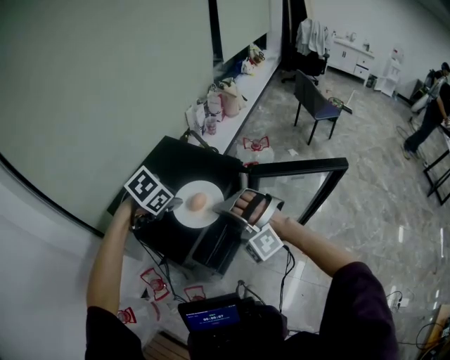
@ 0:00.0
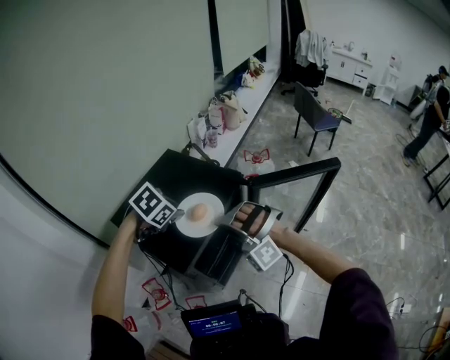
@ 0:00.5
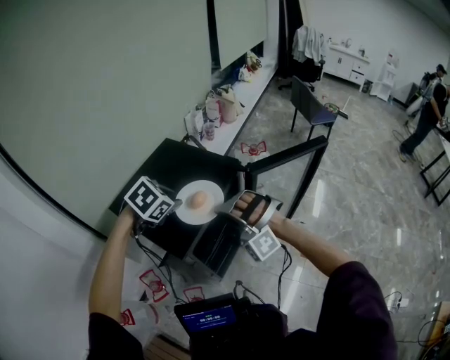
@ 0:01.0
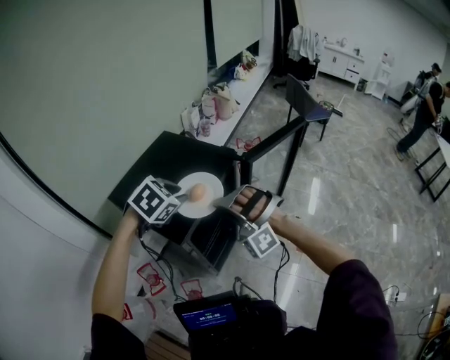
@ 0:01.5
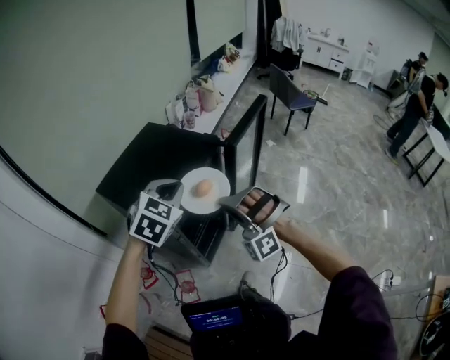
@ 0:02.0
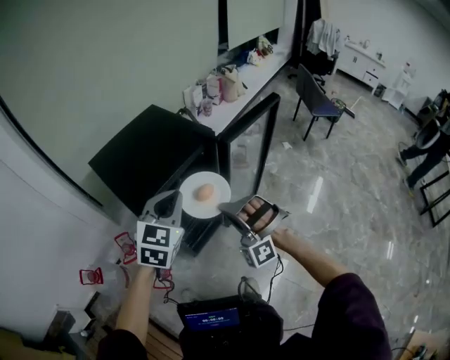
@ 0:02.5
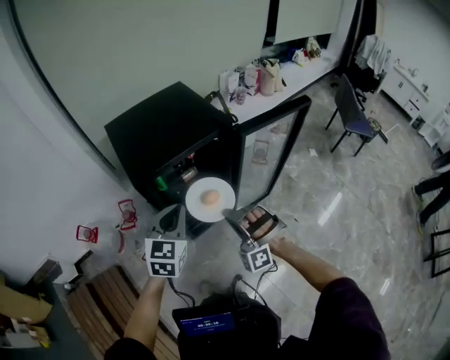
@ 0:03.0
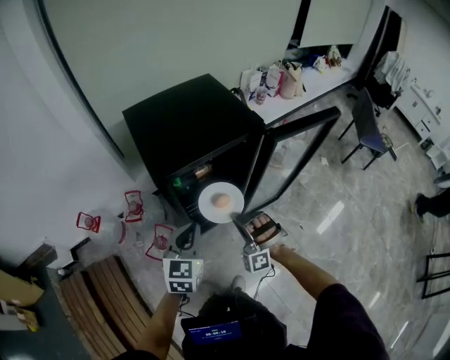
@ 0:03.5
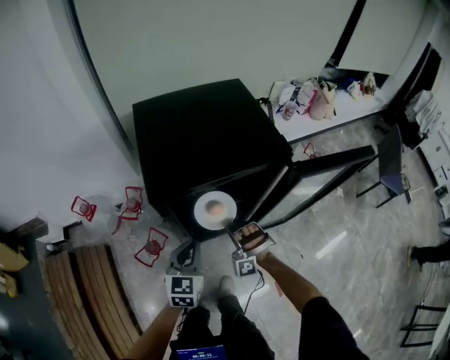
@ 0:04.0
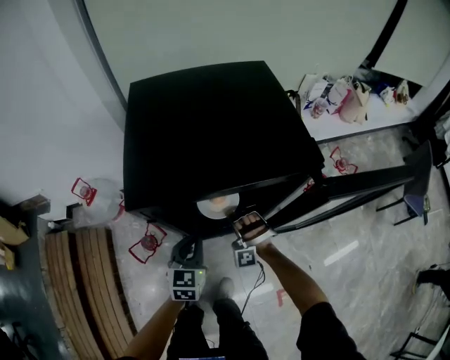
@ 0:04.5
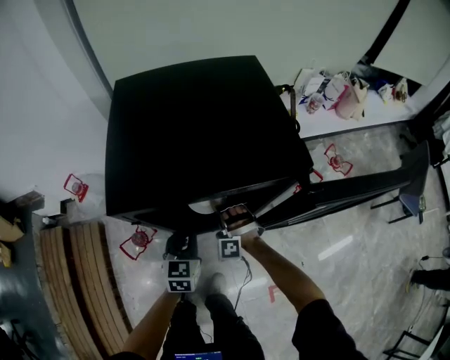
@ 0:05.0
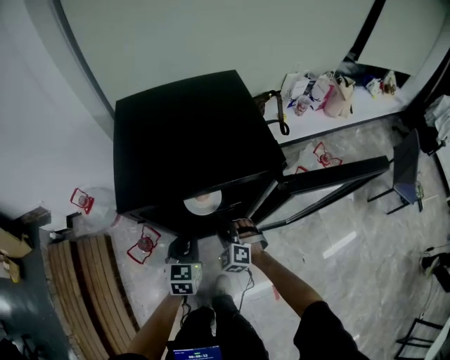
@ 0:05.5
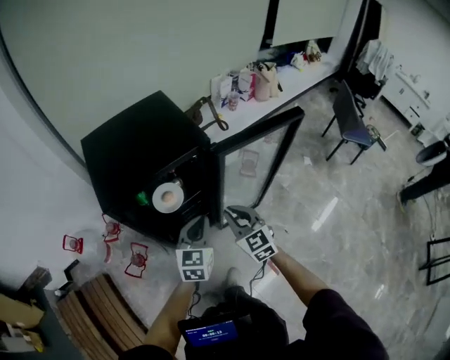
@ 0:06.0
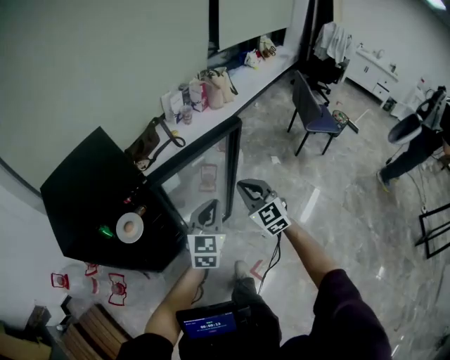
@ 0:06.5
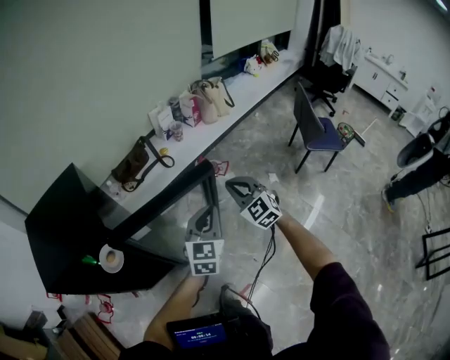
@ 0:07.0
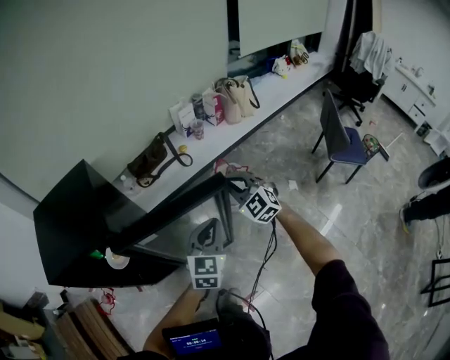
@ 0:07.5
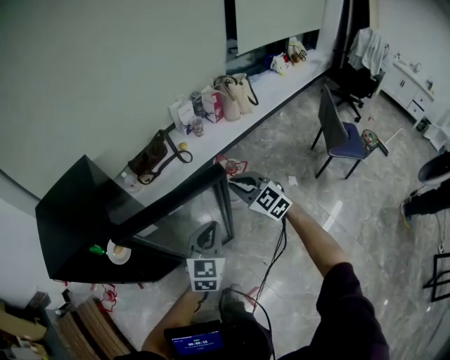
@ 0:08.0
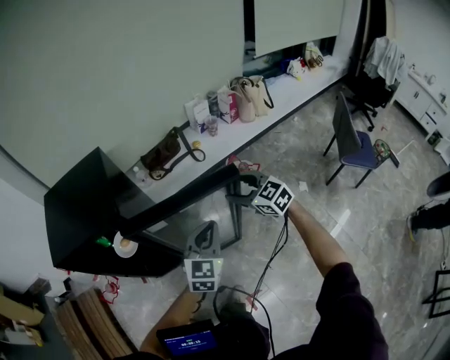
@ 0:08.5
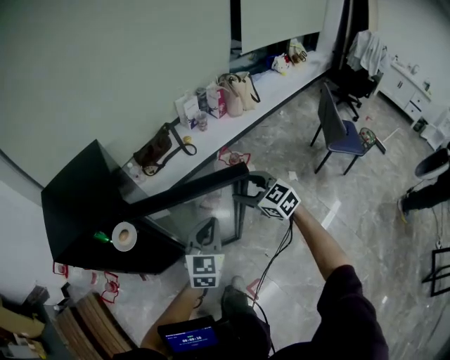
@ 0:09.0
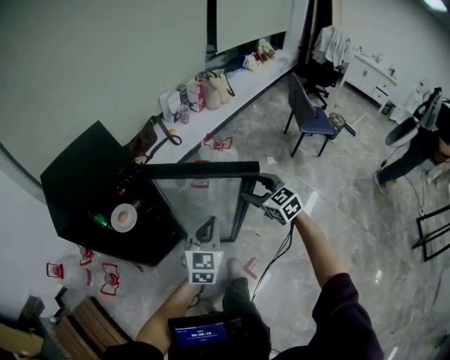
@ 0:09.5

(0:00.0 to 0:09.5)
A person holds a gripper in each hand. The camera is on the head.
0:00.0 - 0:02.0: The left gripper travels backward, upward and to the right by some 15 cm, and angles its fingers upward, by some 30 degrees, while the right gripper heads backward, covering some 10 cm.
0:02.0 - 0:04.0: Both grippers move downward, approximately 25 cm. The left gripper swivels approximately 70 degrees; the right gripper turns by some 30 degrees.
0:04.0 - 0:05.5: The left gripper shifts approximately 10 cm downward and forward; the right gripper travels downward by approximately 5 cm, rotates roughly 40 degrees, and opens.
0:05.5 - 0:07.5: The two grippers travel together, roughly 50 cm. The right gripper turns by roughly 30 degrees, and closes its fingers. Meanwhile the left gripper swivels roughly 30 degrees.
0:07.5 - 0:09.5: The left gripper goes about 25 cm backward and to the left. The right gripper goes some 25 cm backward, turns by some 30 degrees, and opens its fingers.

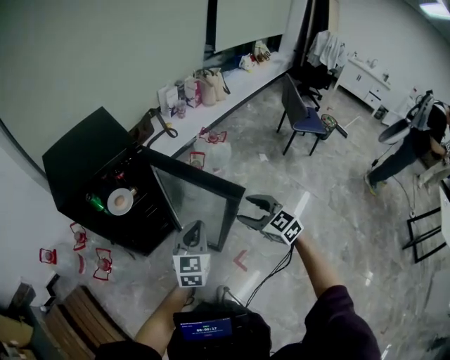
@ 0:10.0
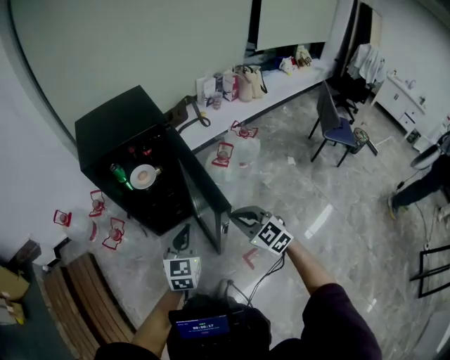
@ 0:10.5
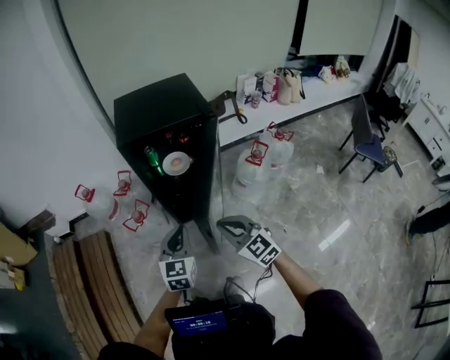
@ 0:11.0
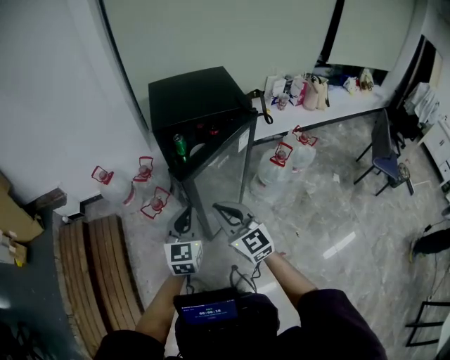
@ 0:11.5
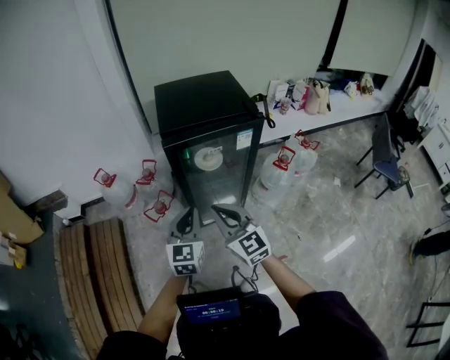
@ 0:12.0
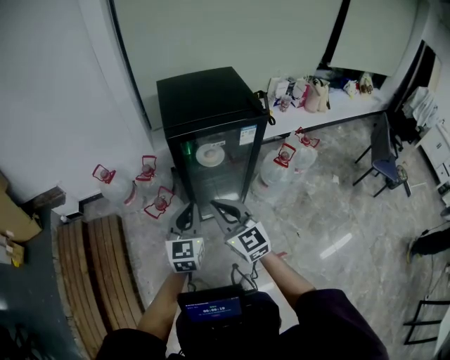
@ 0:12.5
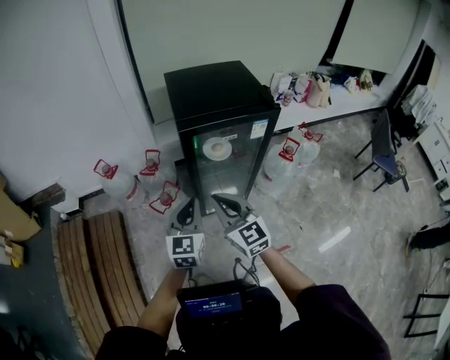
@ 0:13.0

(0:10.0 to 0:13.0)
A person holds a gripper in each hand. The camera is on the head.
0:10.0 - 0:11.5: The left gripper ends up roughly 30 cm from where it was, and rotates about 30 degrees, while the right gripper shifts by roughly 35 cm, changes its angle by about 30 degrees, and closes up.
0:11.5 - 0:13.0: The two grippers go about 10 cm to the left.

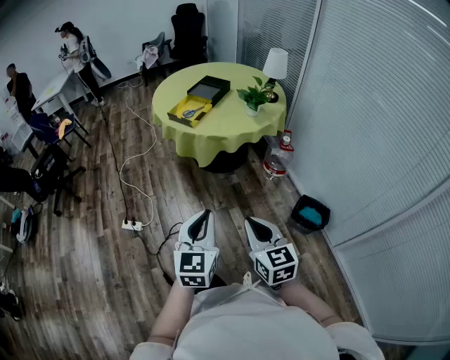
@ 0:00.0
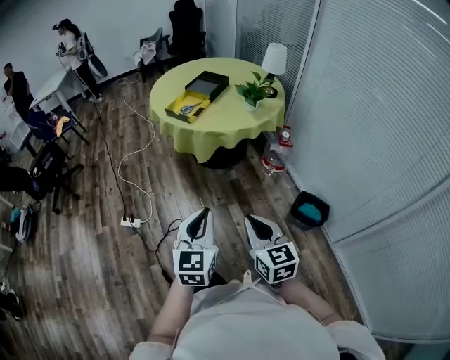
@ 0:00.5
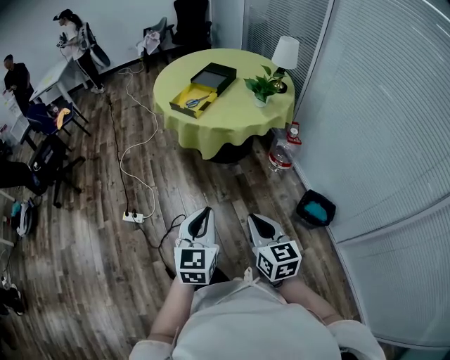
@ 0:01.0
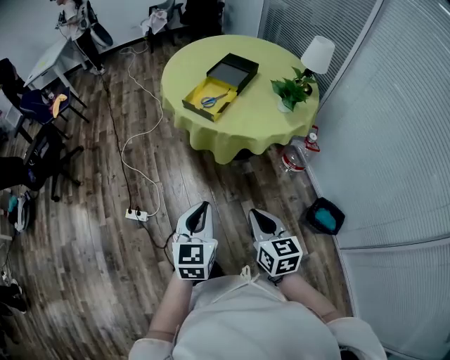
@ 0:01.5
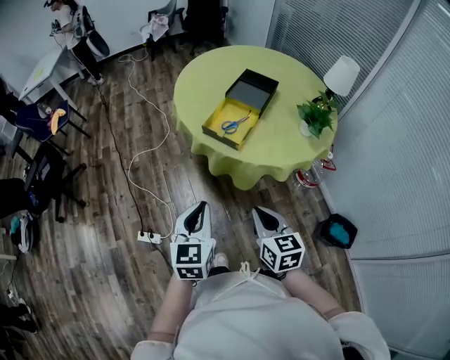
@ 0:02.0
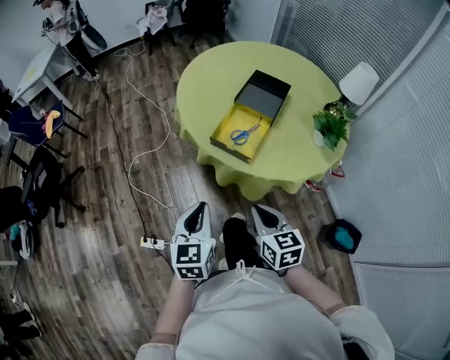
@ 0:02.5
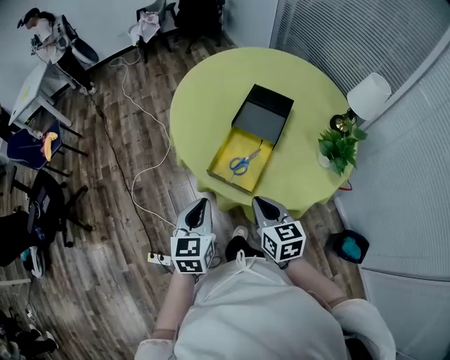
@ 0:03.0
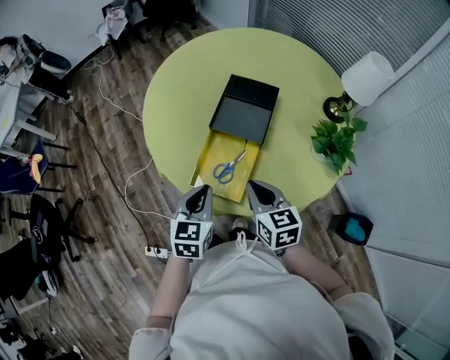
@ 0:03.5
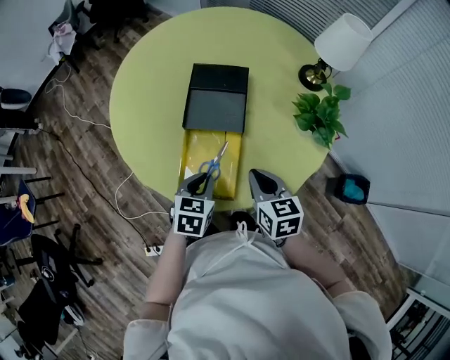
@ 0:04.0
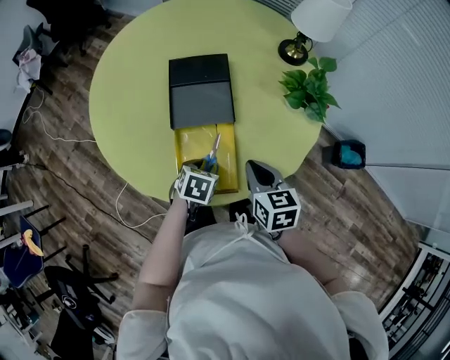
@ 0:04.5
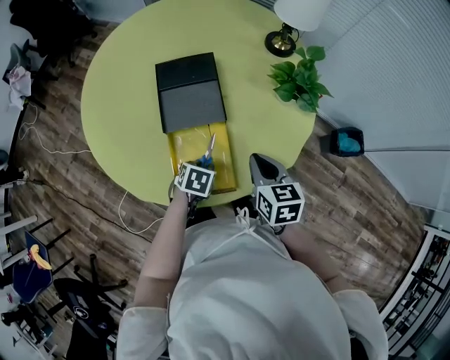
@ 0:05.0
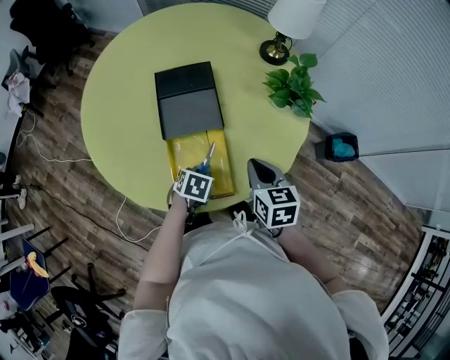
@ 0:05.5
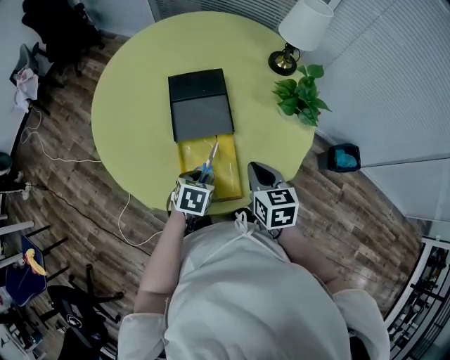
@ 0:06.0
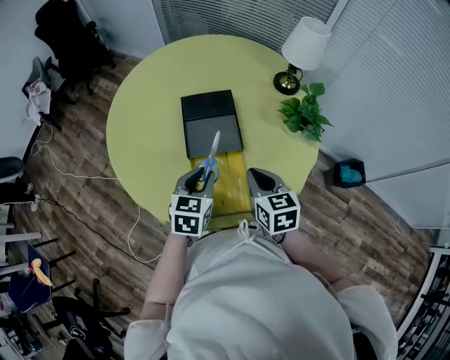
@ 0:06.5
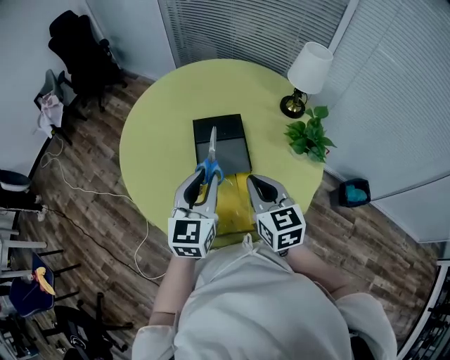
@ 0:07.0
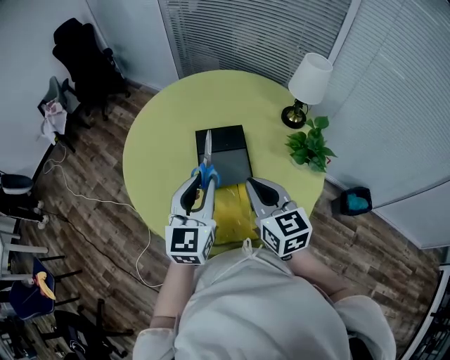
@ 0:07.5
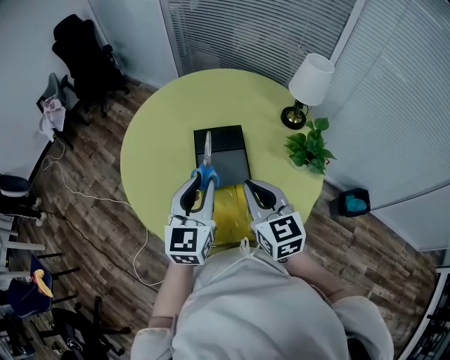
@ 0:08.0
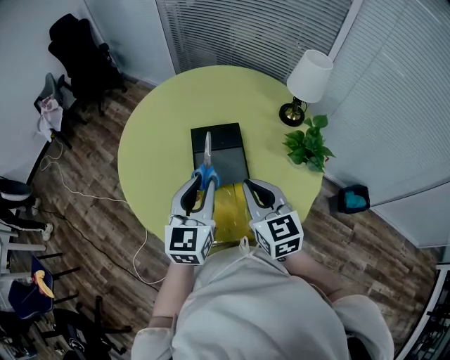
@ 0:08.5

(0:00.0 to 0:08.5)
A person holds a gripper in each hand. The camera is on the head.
0:00.0 - 0:02.0: The two grippers travel together, forward and to the left, some 40 cm.
0:02.0 - 0:04.0: The pair of grippers is taken some 40 cm. The left gripper changes its angle by approximately 40 degrees, while the right gripper changes its angle by roughly 20 degrees.
0:04.0 - 0:06.5: The left gripper travels upward by about 5 cm; the right gripper moves approximately 5 cm.
0:06.5 - 0:08.5: Both grippers move upward, roughly 15 cm. The left gripper changes its angle by roughly 30 degrees.

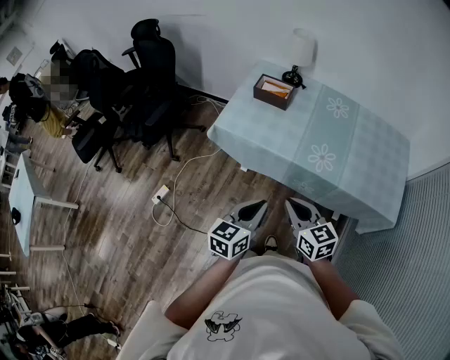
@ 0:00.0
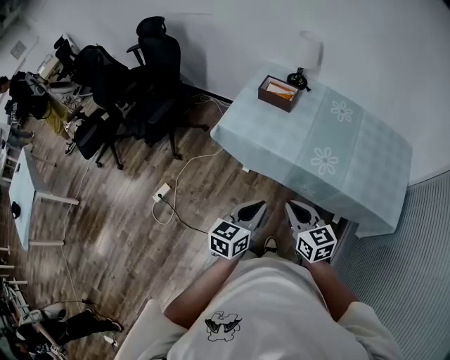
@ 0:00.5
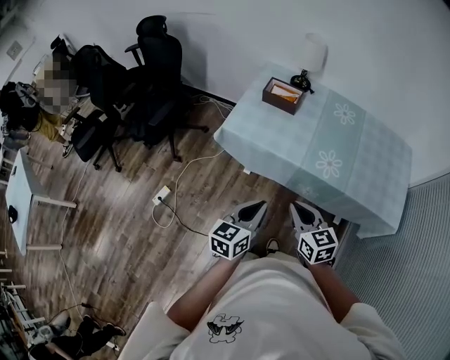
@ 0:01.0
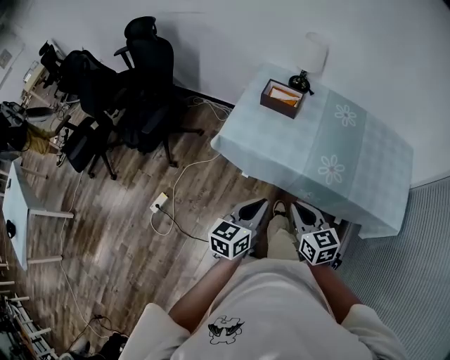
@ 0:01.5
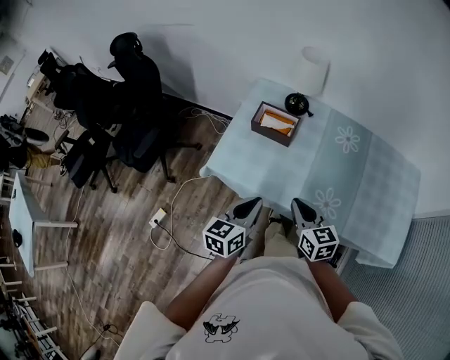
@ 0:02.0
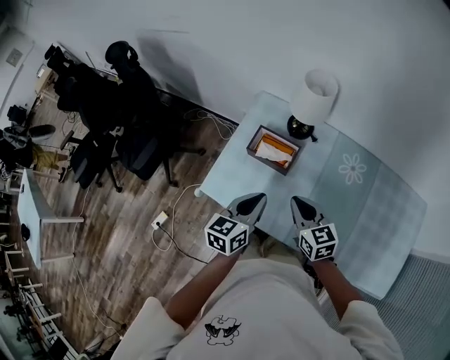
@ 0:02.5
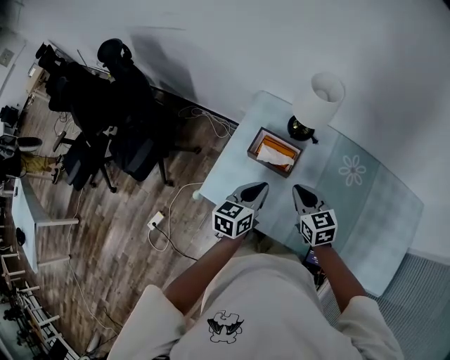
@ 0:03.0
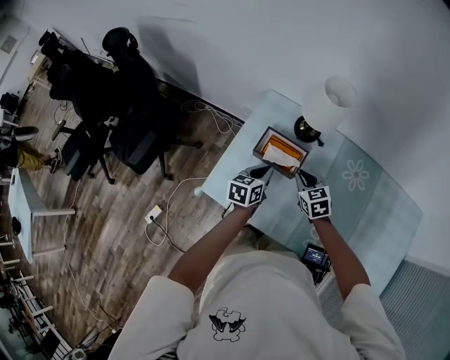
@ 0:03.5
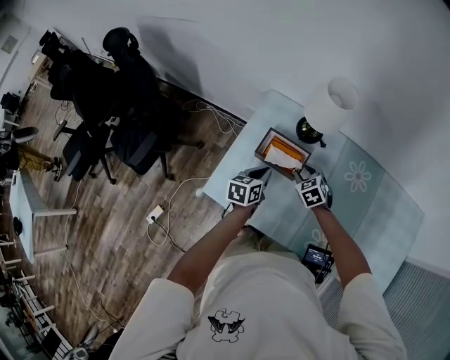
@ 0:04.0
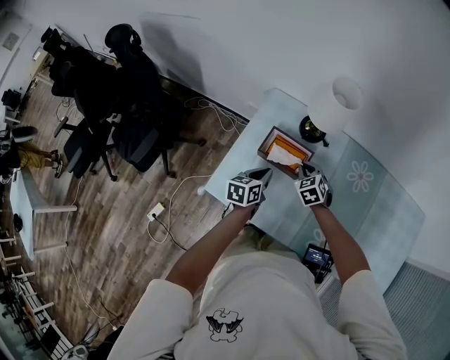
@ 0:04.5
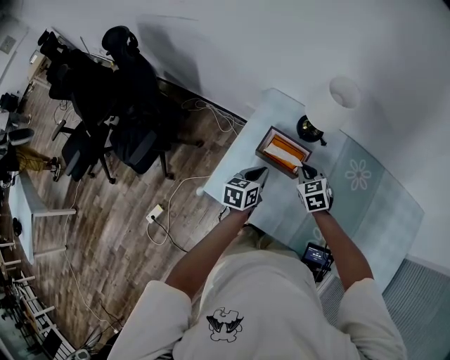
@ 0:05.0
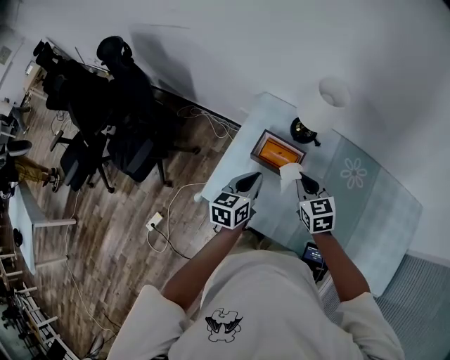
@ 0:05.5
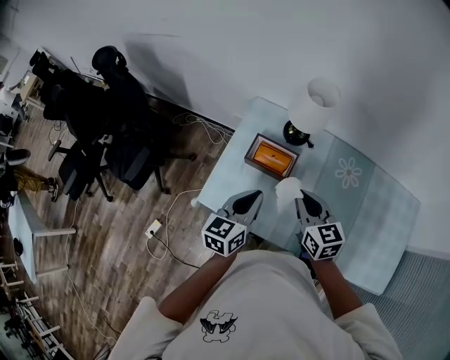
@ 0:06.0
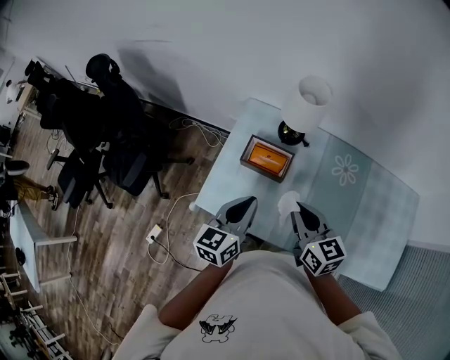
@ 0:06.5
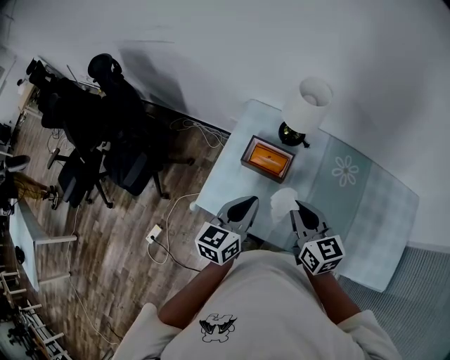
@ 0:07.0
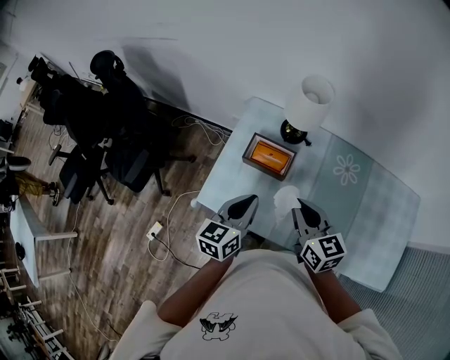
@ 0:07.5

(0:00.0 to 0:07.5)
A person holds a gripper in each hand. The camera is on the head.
0:00.0 - 0:02.0: Both grippers move forward, about 25 cm.
0:02.0 - 0:04.0: Both grippers move forward and downward, about 35 cm. The right gripper turns by some 40 degrees, and opens its fingers.
0:04.0 - 0:05.5: Both grippers travel together upward, roughly 10 cm. The right gripper changes its angle by some 20 degrees, and closes its fingers.
0:05.5 - 0:07.5: The right gripper goes about 15 cm upward and backward, and changes its angle by roughly 20 degrees, while the left gripper travels backward and upward by roughly 10 cm.
